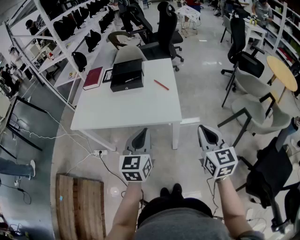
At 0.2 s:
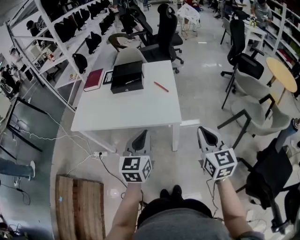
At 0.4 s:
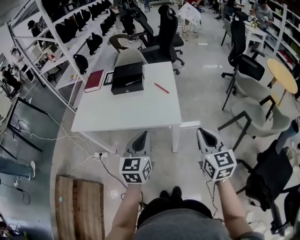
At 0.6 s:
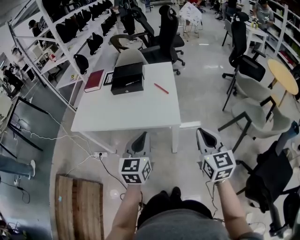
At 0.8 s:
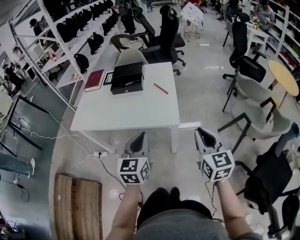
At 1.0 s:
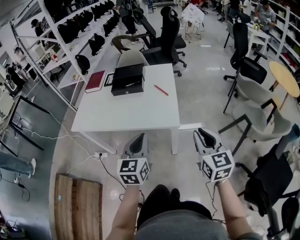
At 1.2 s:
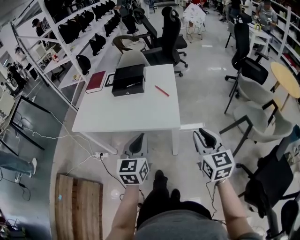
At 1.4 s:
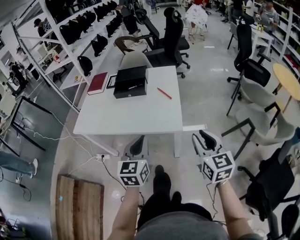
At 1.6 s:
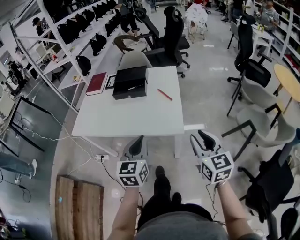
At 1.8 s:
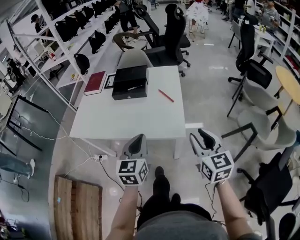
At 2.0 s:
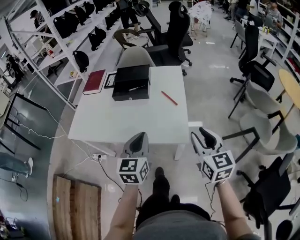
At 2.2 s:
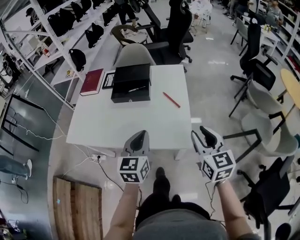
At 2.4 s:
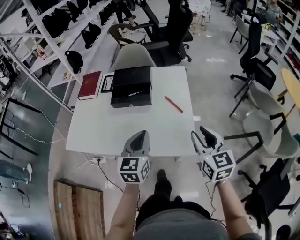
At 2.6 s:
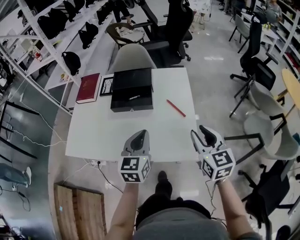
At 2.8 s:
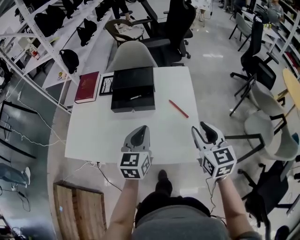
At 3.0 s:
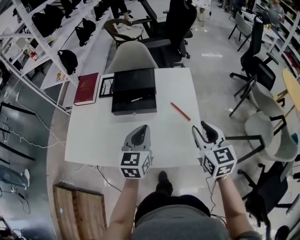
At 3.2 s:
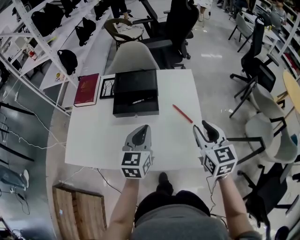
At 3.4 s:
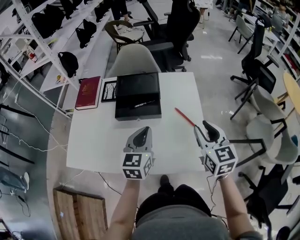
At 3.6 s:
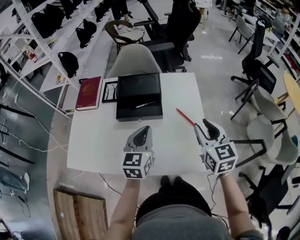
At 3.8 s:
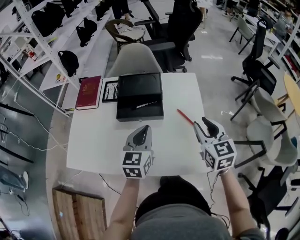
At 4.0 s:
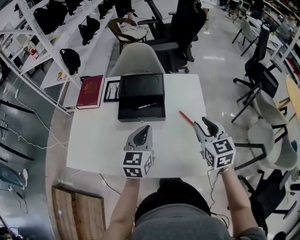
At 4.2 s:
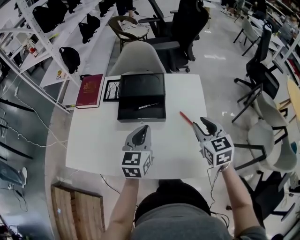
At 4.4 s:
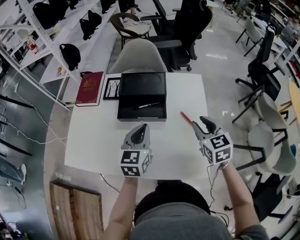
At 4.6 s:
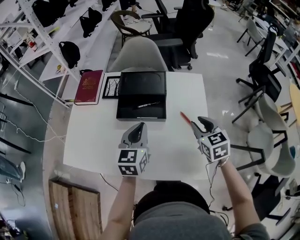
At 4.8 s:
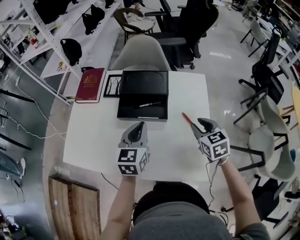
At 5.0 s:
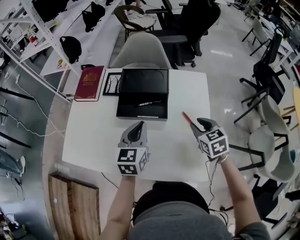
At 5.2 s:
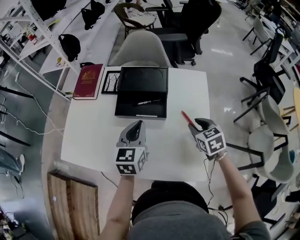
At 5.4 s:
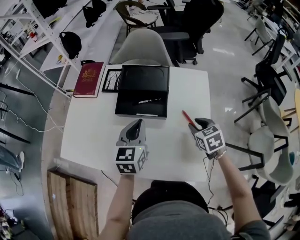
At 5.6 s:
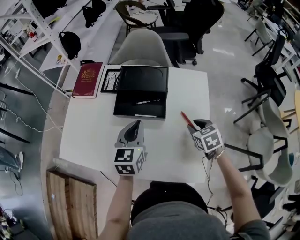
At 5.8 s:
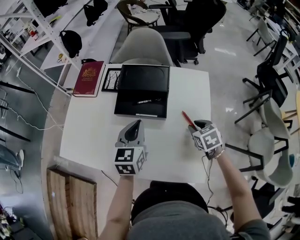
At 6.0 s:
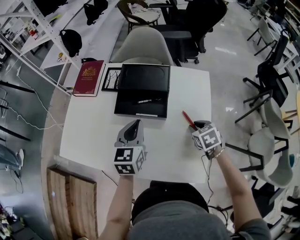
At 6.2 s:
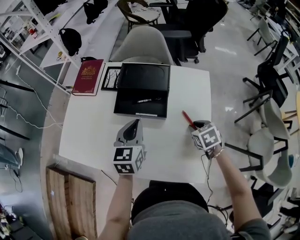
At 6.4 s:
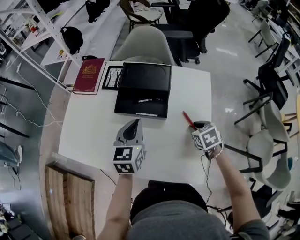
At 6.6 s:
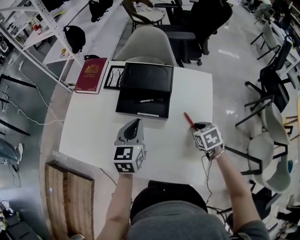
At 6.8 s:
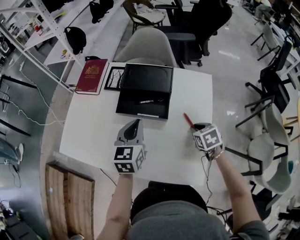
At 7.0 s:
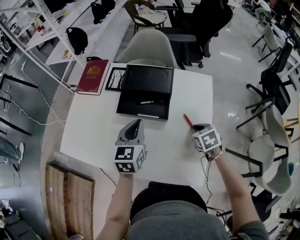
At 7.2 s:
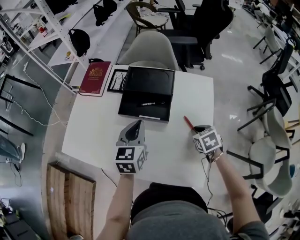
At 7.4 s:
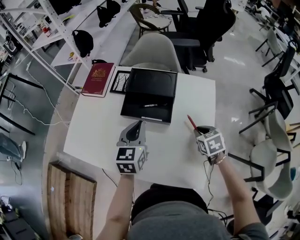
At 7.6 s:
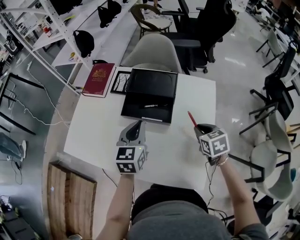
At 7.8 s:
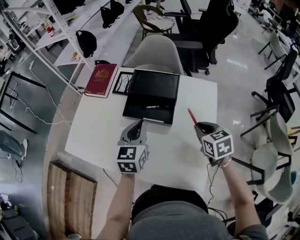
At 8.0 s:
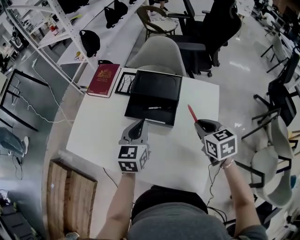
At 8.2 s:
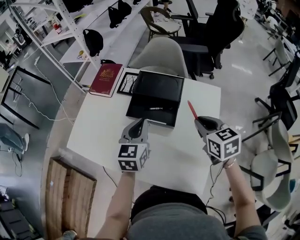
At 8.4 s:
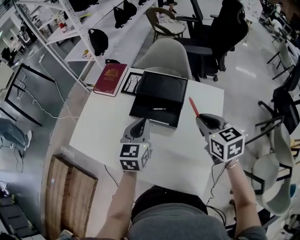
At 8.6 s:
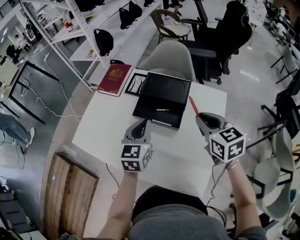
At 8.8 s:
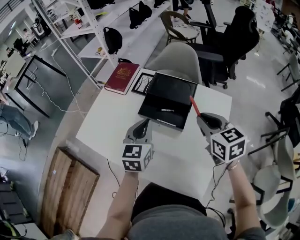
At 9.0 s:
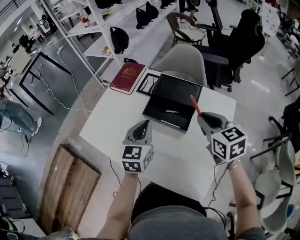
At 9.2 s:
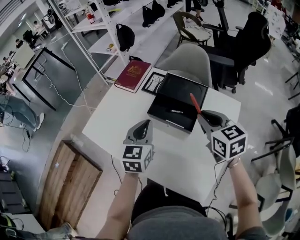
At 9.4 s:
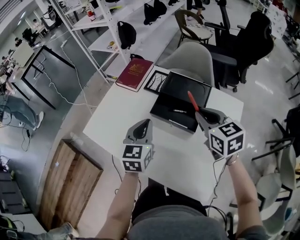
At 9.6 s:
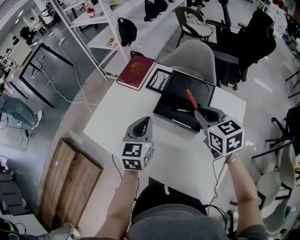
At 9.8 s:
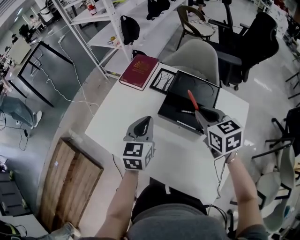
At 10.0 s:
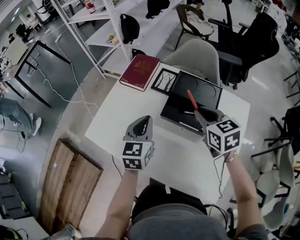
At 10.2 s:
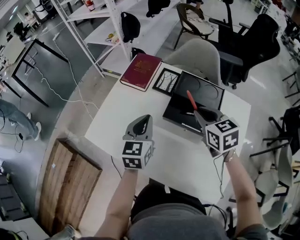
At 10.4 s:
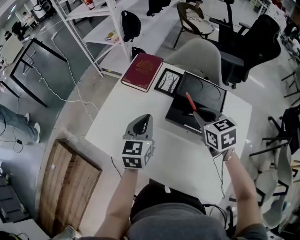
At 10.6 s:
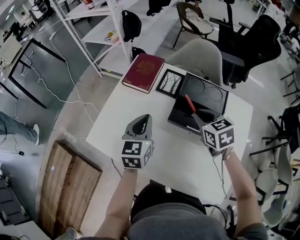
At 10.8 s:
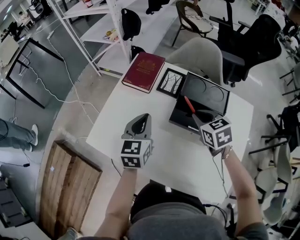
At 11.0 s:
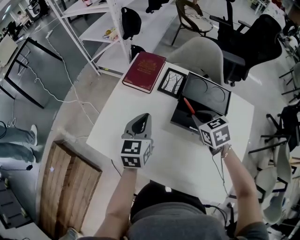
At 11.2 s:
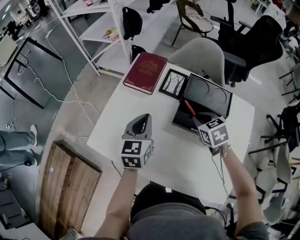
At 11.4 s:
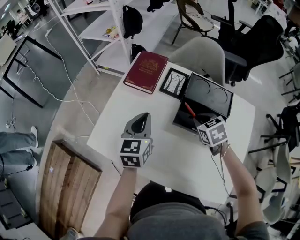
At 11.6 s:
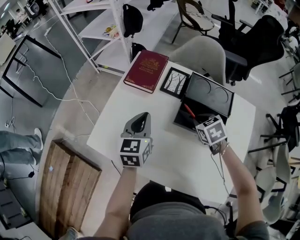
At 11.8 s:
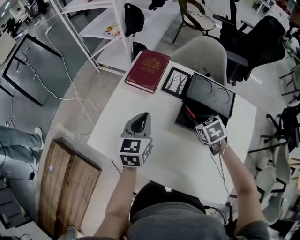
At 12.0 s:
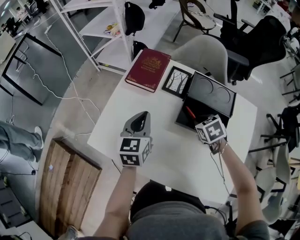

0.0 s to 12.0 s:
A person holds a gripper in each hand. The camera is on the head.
0.0 to 1.6 s: The right gripper opens up.
1.6 to 3.0 s: Both grippers travel together forward, roughly 25 cm.
3.0 to 4.4 s: The left gripper is displaced forward by some 5 cm, while the right gripper moves forward, approximately 10 cm.
4.4 to 6.0 s: The right gripper heads downward, covering about 15 cm, and swivels some 30 degrees.
6.0 to 7.6 s: The right gripper heads upward, covering some 5 cm.
7.6 to 9.0 s: The left gripper ends up approximately 5 cm from where it was. Meanwhile the right gripper goes approximately 20 cm upward, to the left and forward, and rotates about 30 degrees.
9.0 to 10.4 s: The left gripper heads to the left and forward, covering approximately 15 cm. The right gripper moves to the left, forward and downward, approximately 15 cm.
10.4 to 12.0 s: The left gripper changes place by approximately 5 cm; the right gripper goes approximately 15 cm downward, and rotates about 30 degrees.

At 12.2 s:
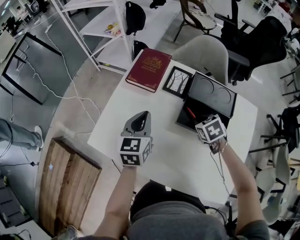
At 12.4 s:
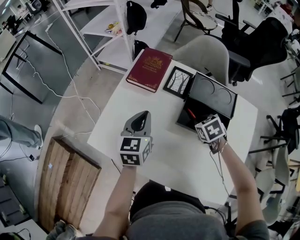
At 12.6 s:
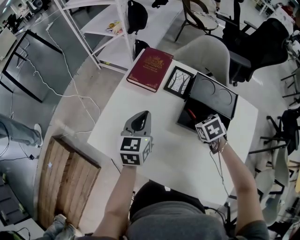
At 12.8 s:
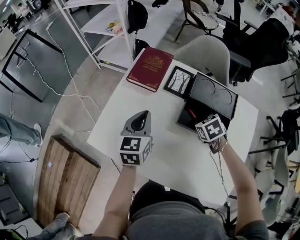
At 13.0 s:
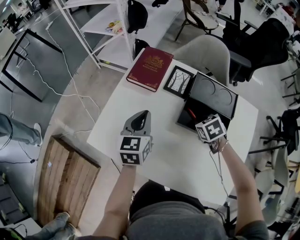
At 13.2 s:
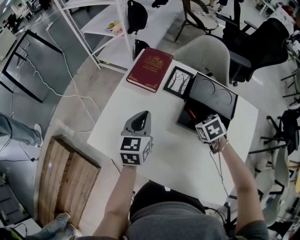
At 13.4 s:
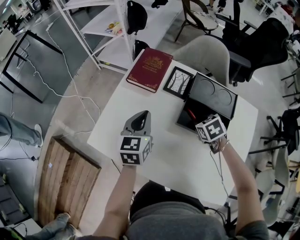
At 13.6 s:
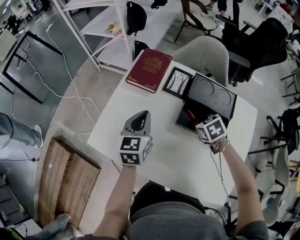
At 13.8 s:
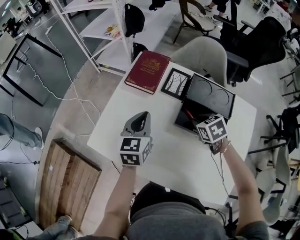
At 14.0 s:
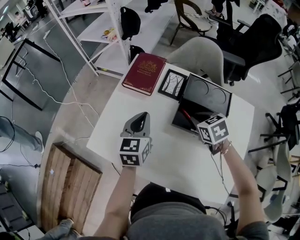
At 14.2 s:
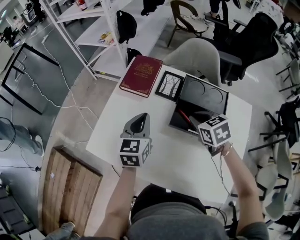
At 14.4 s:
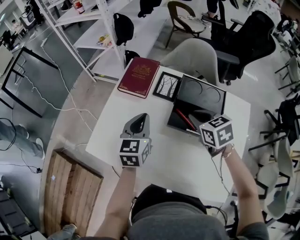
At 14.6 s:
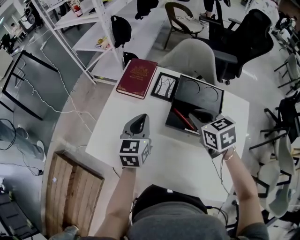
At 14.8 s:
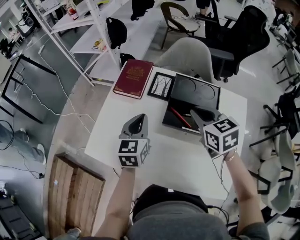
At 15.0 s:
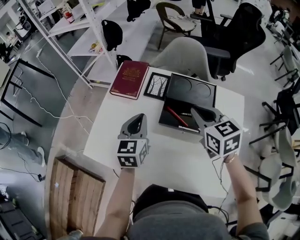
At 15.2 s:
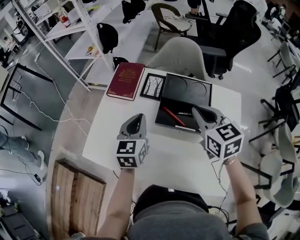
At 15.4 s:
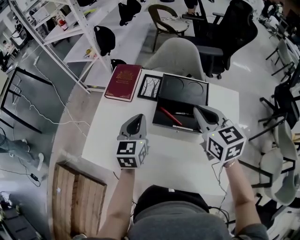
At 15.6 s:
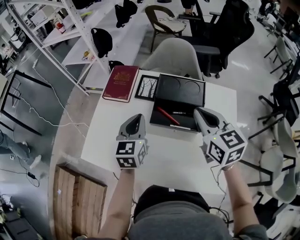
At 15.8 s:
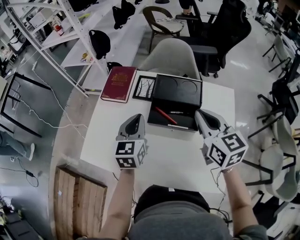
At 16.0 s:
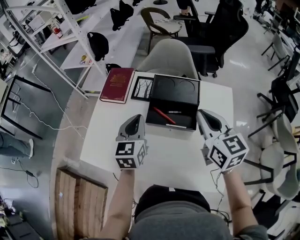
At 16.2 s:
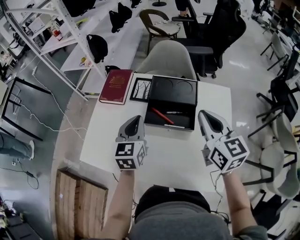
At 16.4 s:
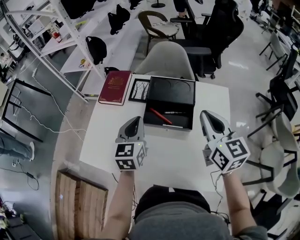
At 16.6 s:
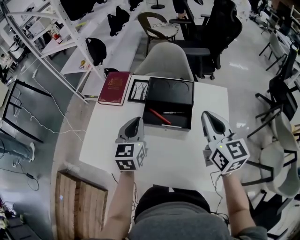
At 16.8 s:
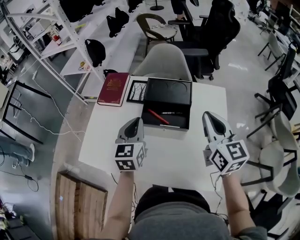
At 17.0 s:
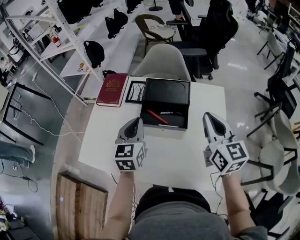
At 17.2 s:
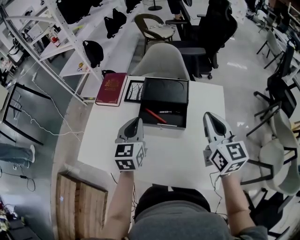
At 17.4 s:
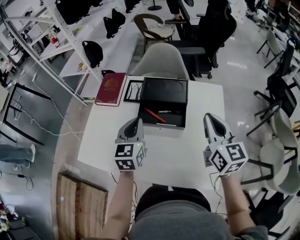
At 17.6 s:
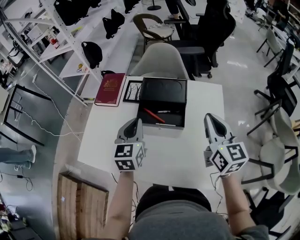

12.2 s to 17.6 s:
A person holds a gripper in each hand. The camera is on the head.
12.2 to 13.6 s: Both grippers stay about where they are.
13.6 to 15.0 s: The right gripper heads upward, covering roughly 20 cm, and tips its fingers upward by some 30 degrees, while the left gripper shifts roughly 5 cm to the right.
15.0 to 16.2 s: The left gripper moves to the right, some 5 cm. Meanwhile the right gripper is displaced to the right, backward and upward by about 10 cm, and turns by about 20 degrees.
16.2 to 17.6 s: The right gripper moves to the right, some 5 cm.

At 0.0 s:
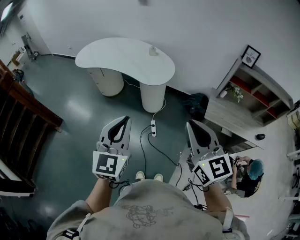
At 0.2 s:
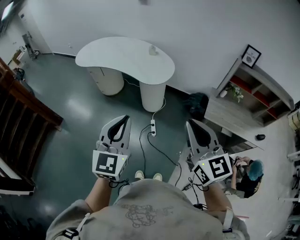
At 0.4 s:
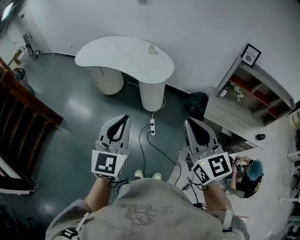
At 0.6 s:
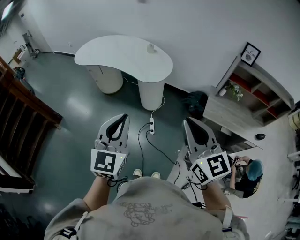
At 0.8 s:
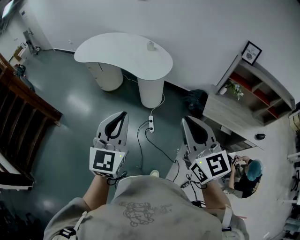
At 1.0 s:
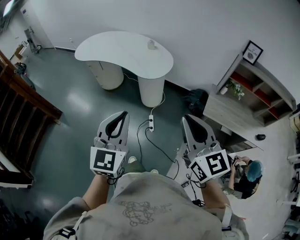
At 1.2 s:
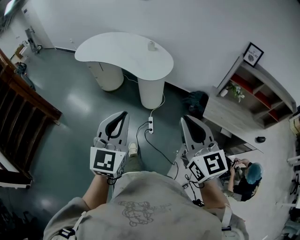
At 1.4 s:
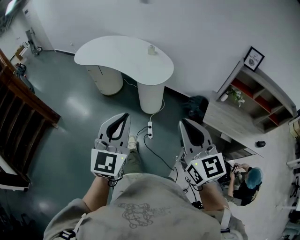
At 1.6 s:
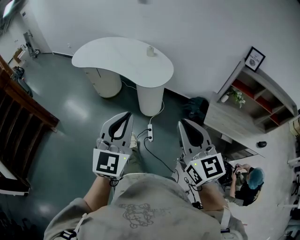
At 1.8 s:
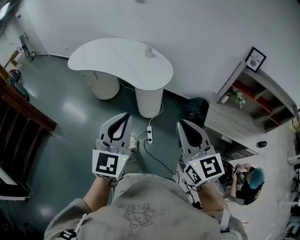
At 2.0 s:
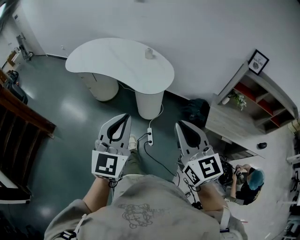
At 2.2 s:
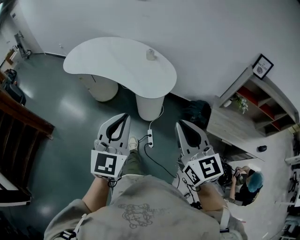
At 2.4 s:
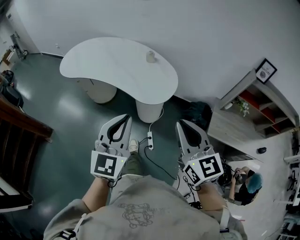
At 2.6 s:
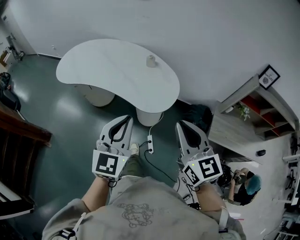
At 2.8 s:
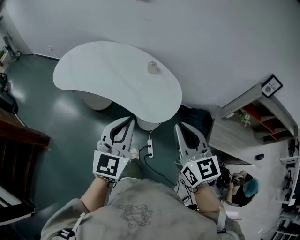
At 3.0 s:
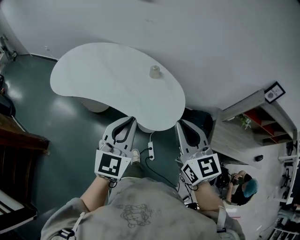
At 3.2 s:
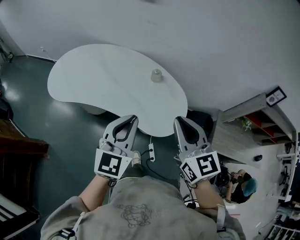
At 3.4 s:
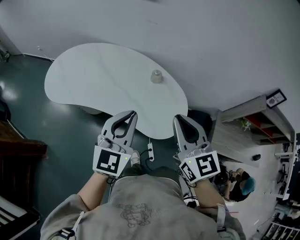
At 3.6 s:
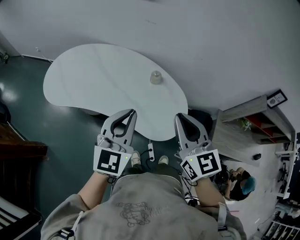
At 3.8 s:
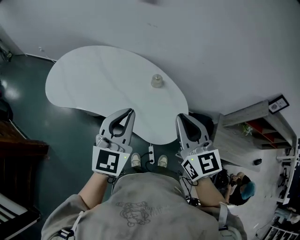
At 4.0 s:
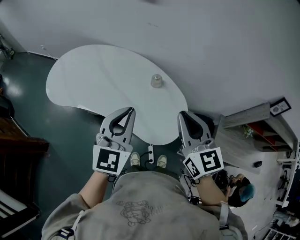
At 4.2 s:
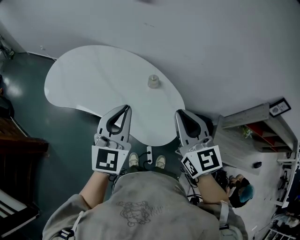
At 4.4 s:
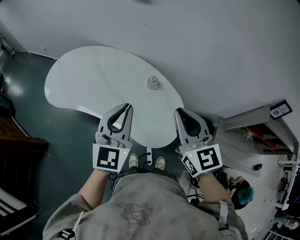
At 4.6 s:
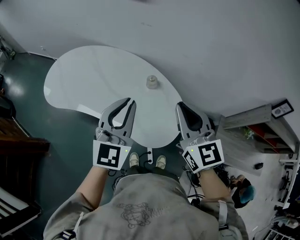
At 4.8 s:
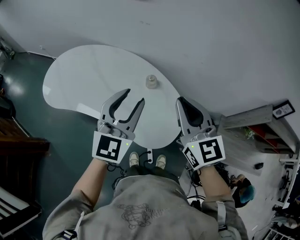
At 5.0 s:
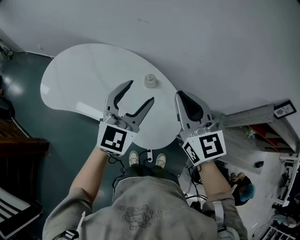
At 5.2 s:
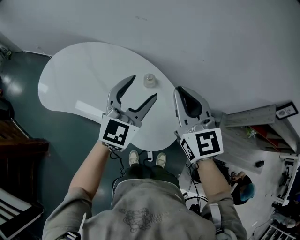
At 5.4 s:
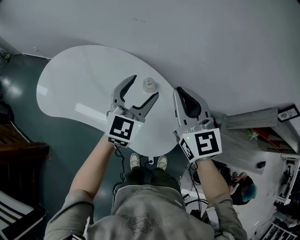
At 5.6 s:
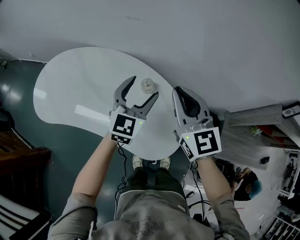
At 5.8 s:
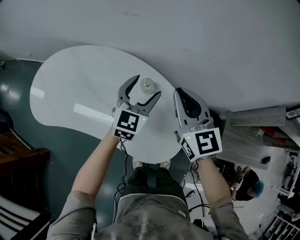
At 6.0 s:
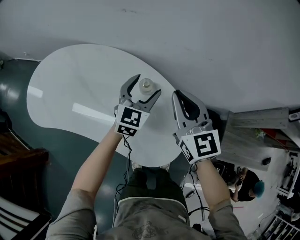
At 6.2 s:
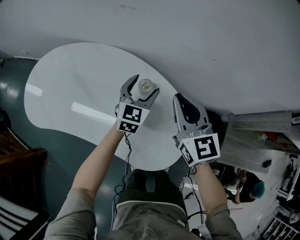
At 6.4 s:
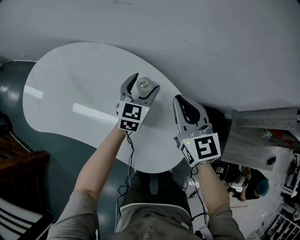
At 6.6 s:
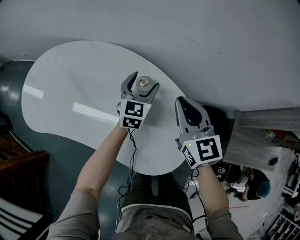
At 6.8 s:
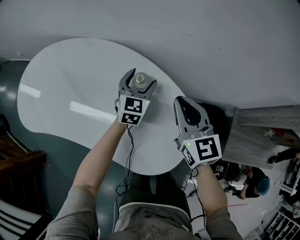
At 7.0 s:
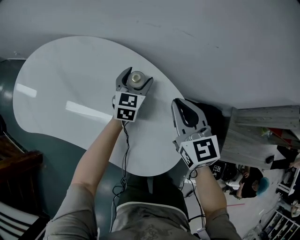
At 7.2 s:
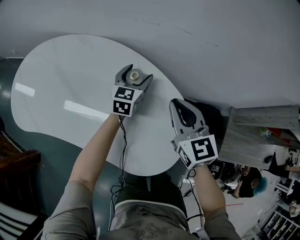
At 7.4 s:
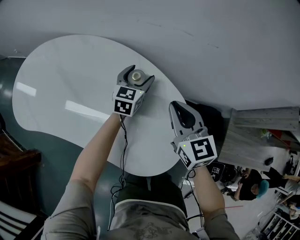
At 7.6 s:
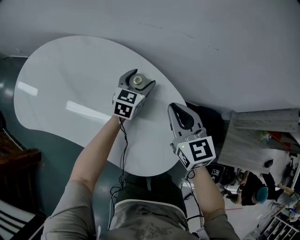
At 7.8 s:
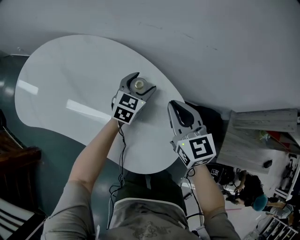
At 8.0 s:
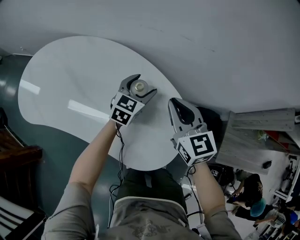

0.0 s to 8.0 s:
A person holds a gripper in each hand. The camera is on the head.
0.0 to 1.6 s: The left gripper moves to the right, some 5 cm, while the right gripper moves forward and downward, roughly 5 cm.
1.6 to 3.2 s: The pair of grippers is taken forward, some 50 cm.
3.2 to 4.8 s: The left gripper goes about 15 cm forward and to the right, and opens; the right gripper travels forward by roughly 15 cm.
4.8 to 6.4 s: The two grippers go approximately 30 cm downward and forward. The left gripper opens its fingers.
